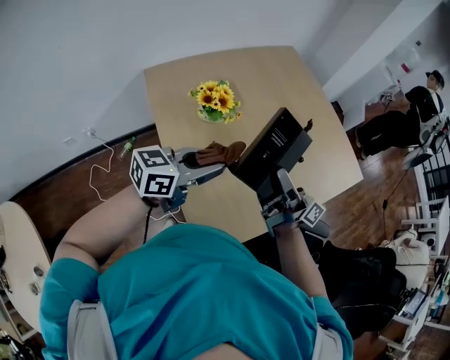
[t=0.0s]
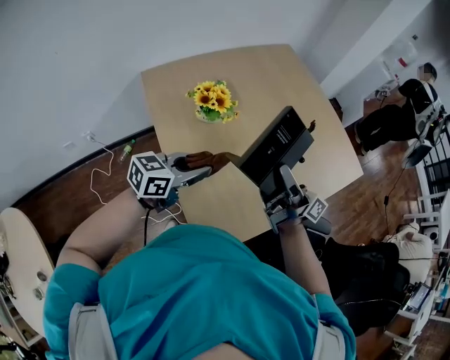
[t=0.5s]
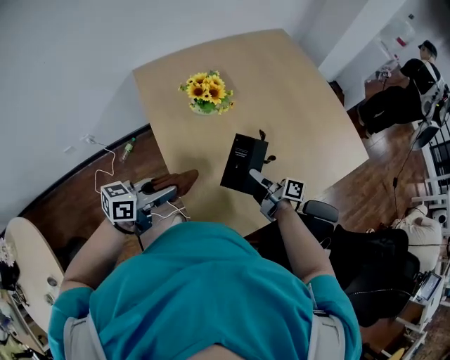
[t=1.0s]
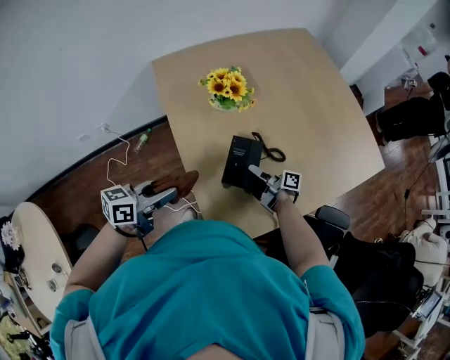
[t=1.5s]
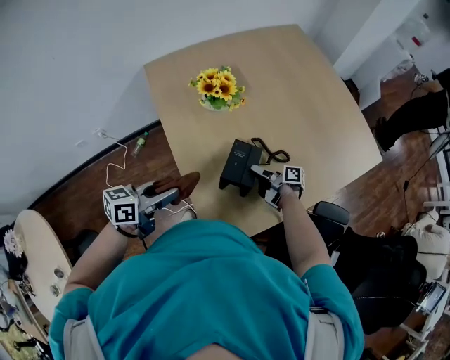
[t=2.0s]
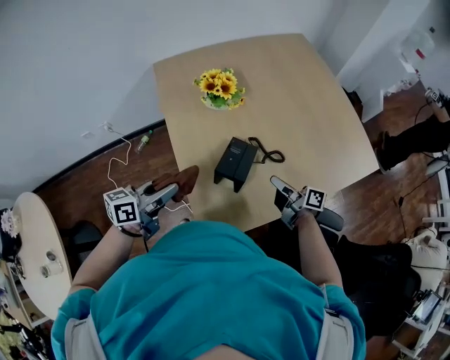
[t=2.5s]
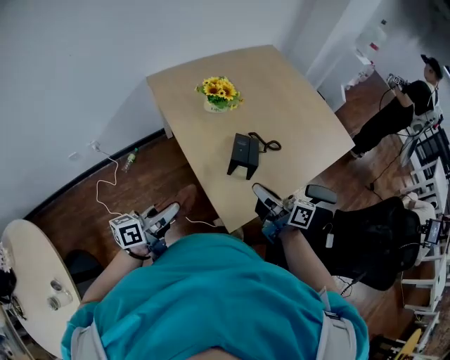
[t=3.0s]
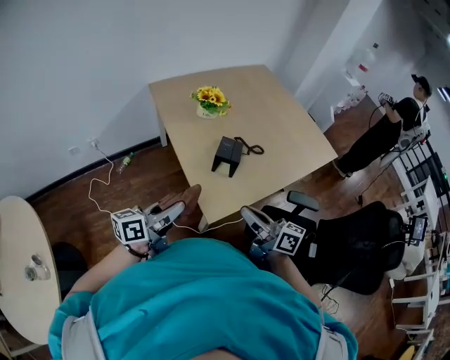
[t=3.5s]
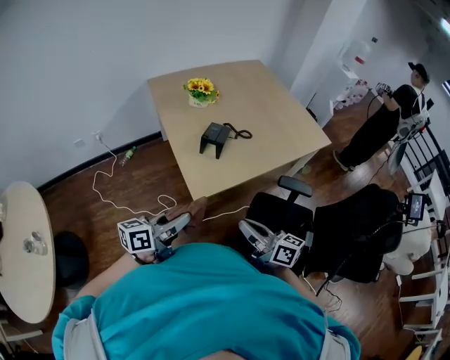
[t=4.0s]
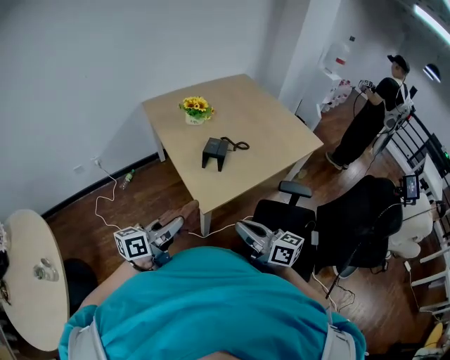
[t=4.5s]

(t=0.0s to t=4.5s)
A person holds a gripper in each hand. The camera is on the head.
t=0.0s - t=2.0s: The right gripper heads downward, covering some 35 cm, and tips its fingers downward by about 50 degrees. The left gripper shifts some 20 cm to the left, downward and backward, and swivels approximately 20 degrees.
t=2.0s - t=4.5s: The left gripper travels backward by roughly 35 cm, while the right gripper goes roughly 60 cm backward and upward, rolls counterclockwise, seen from behind, by approximately 50 degrees, and closes up.

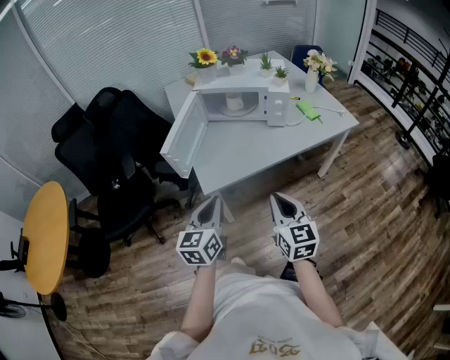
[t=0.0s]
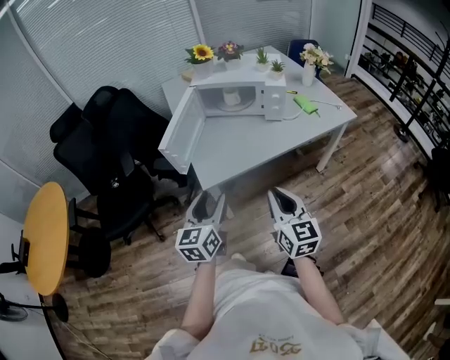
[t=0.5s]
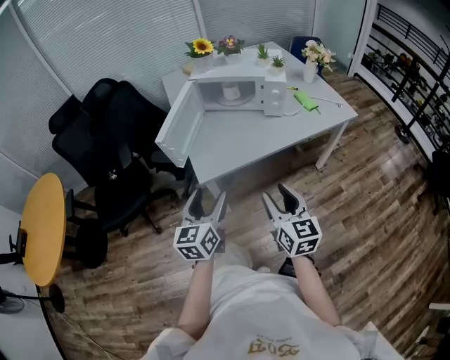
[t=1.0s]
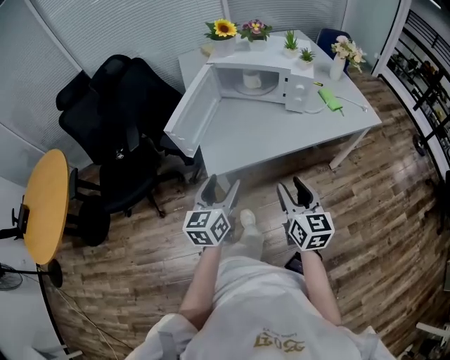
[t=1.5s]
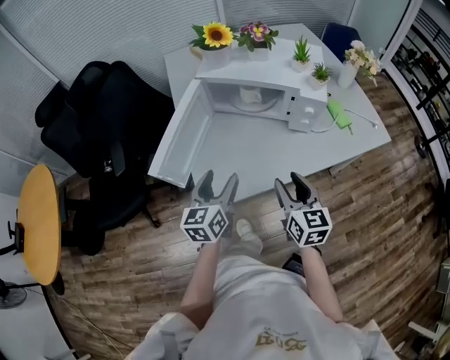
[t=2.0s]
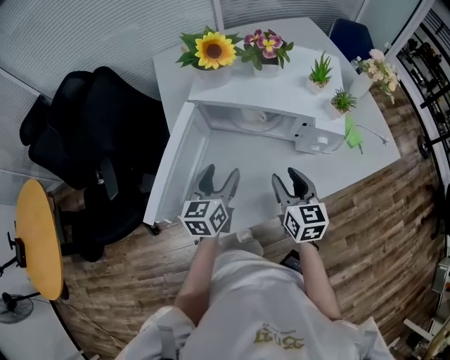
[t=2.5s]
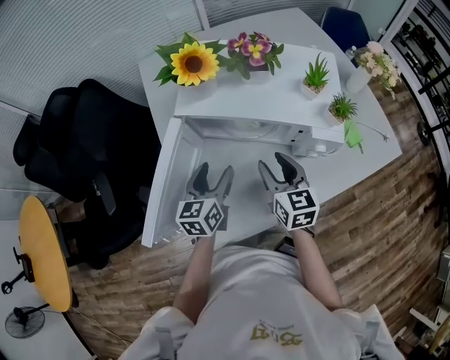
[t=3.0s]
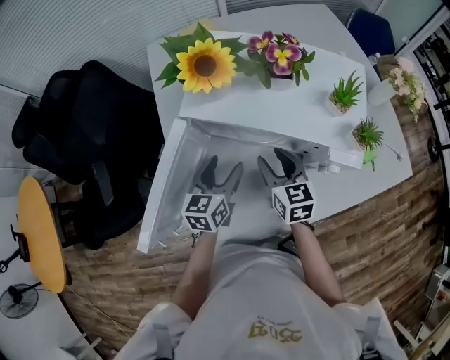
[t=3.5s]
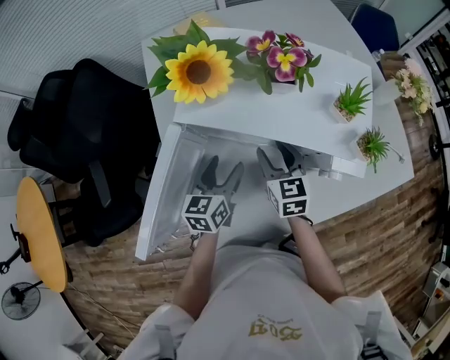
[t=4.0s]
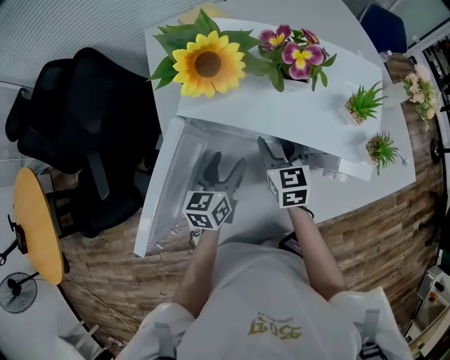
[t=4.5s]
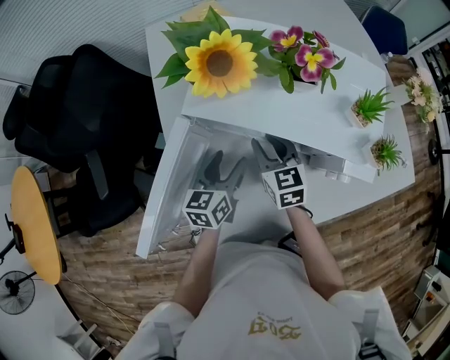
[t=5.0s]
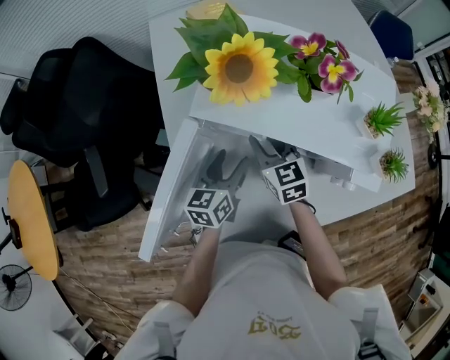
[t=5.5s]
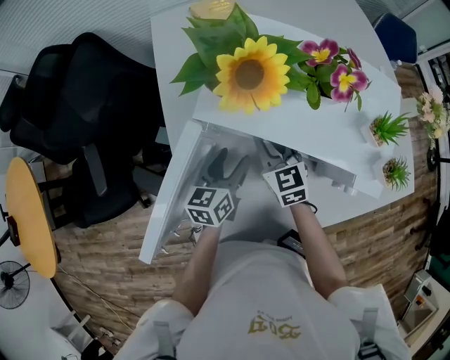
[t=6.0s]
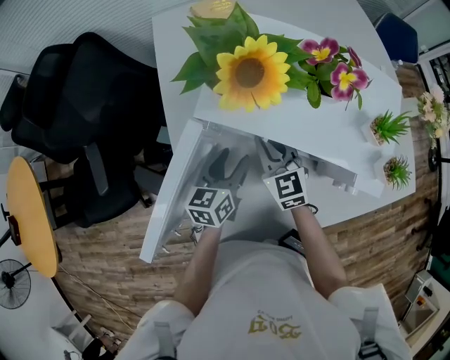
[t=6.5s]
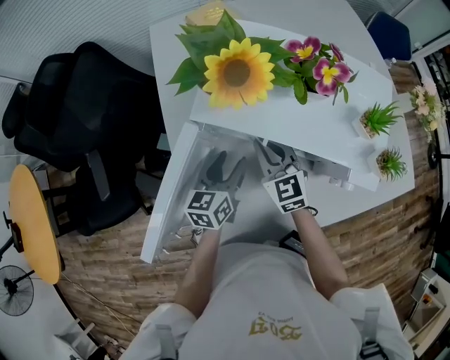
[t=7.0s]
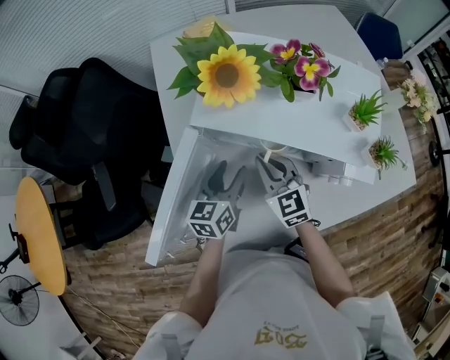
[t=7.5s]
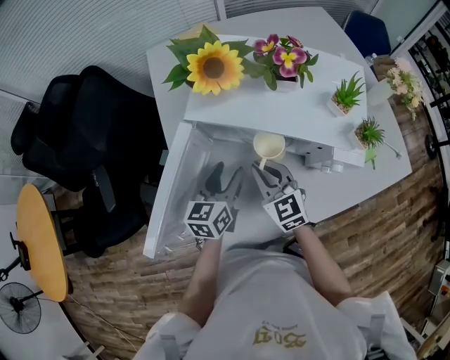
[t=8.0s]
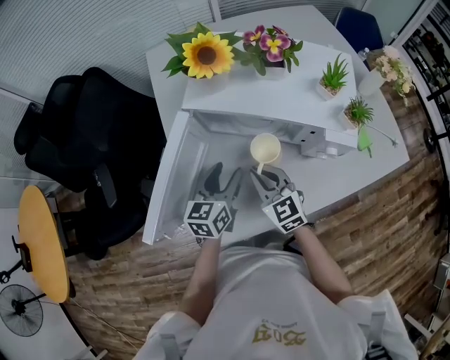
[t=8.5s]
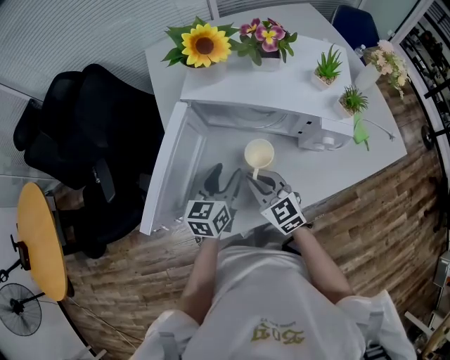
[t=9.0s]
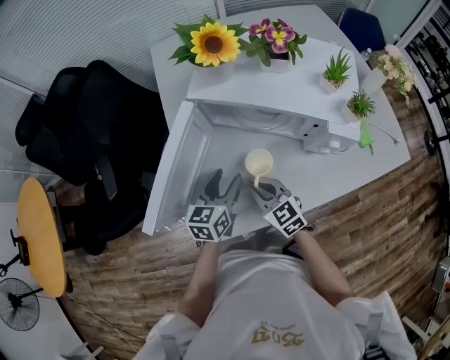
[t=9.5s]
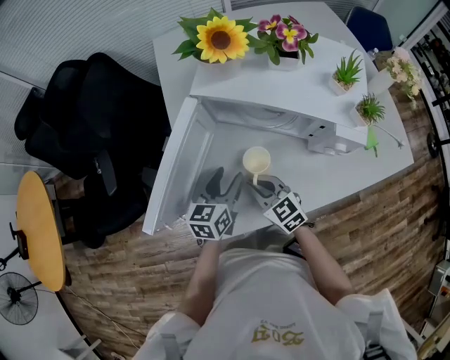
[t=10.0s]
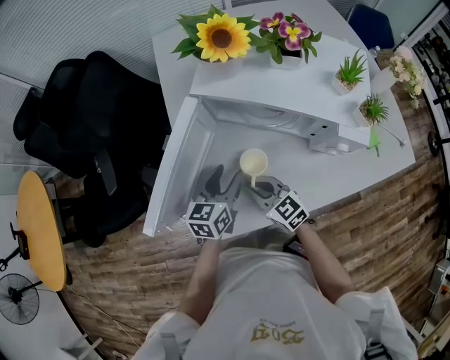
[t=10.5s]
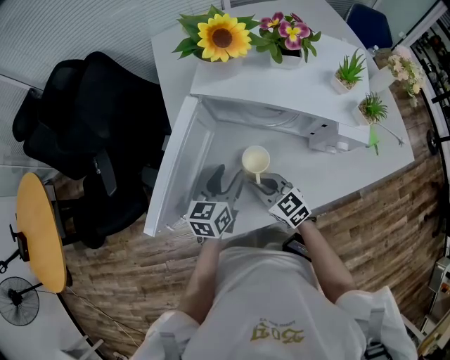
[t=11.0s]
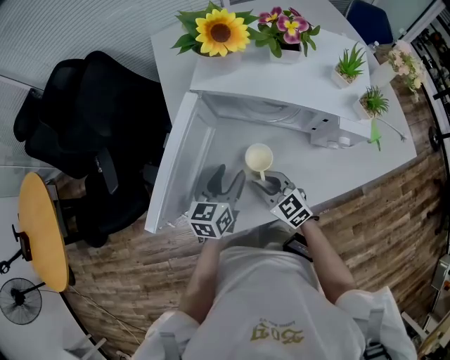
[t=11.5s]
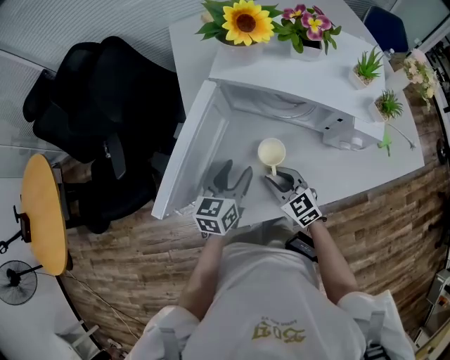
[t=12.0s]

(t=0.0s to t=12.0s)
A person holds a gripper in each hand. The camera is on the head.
t=0.0s - t=2.0s: Both grippers move forward, approximately 20 cm. The right gripper opens its fingers. The left gripper opens its fingers.
t=2.0s - t=4.0s: Both grippers move forward, approximately 30 cm.
t=4.0s - t=6.0s: The right gripper goes approximately 10 cm to the left, and closes up.
t=6.0s - t=8.0s: The left gripper changes place by some 5 cm. The right gripper shifts roughly 10 cm backward.
t=8.0s - t=10.0s: The left gripper shifts about 5 cm backward. The right gripper travels backward and downward by some 10 cm.
t=10.0s - t=12.0s: The grippers stay close to where they were, moving slightly.

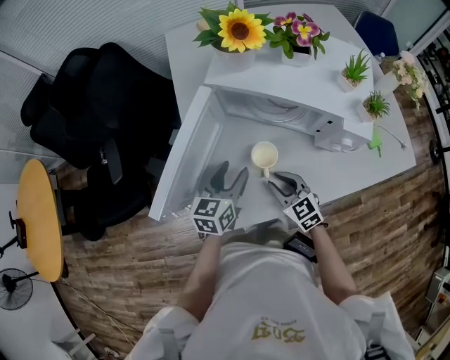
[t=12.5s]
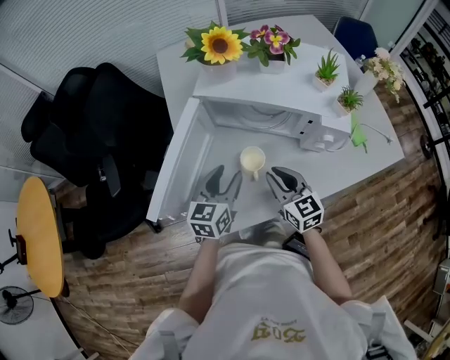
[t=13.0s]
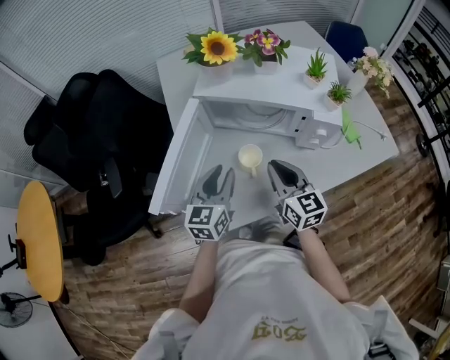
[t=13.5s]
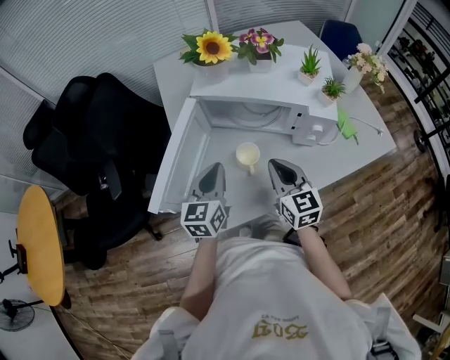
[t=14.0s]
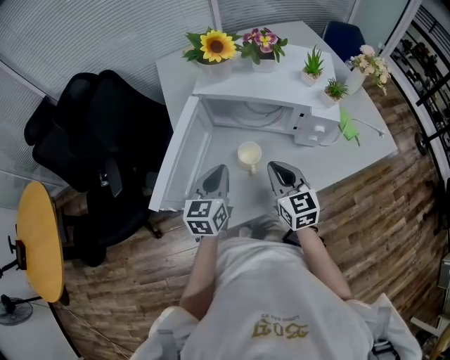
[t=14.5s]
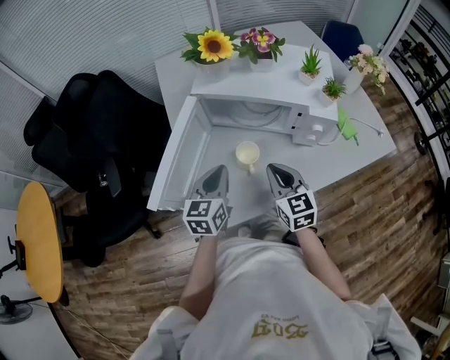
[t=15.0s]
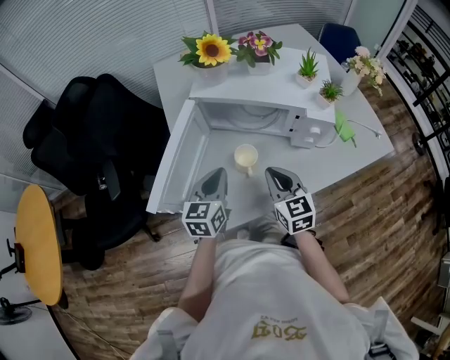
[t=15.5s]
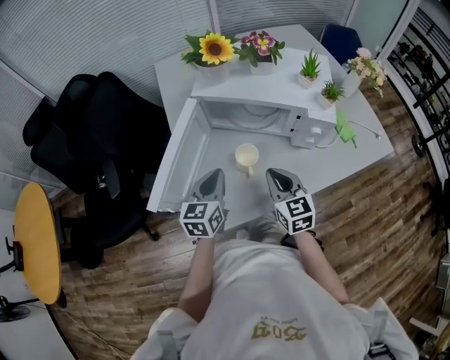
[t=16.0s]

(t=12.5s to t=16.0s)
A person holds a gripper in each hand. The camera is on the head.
t=12.5s - t=14.5s: The left gripper shifts approximately 5 cm upward, and closes its fingers, while the right gripper moves upward, roughly 15 cm, swivels some 30 degrees, and closes.
t=14.5s - t=16.0s: The grippers move only a little.

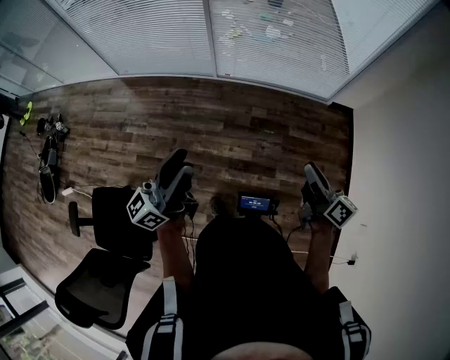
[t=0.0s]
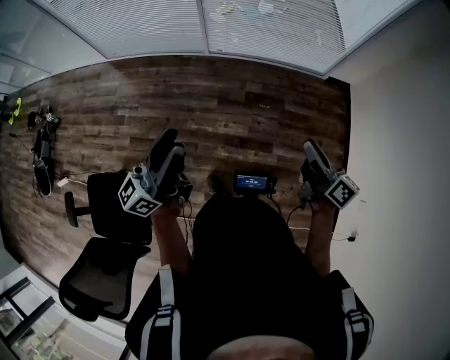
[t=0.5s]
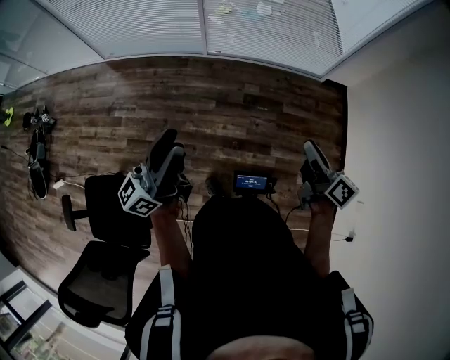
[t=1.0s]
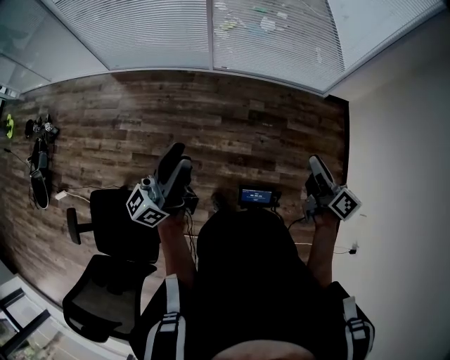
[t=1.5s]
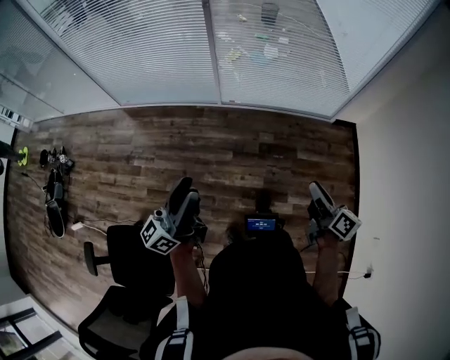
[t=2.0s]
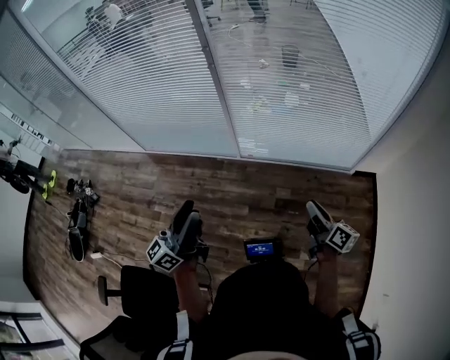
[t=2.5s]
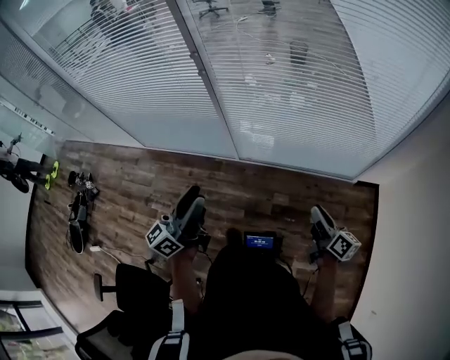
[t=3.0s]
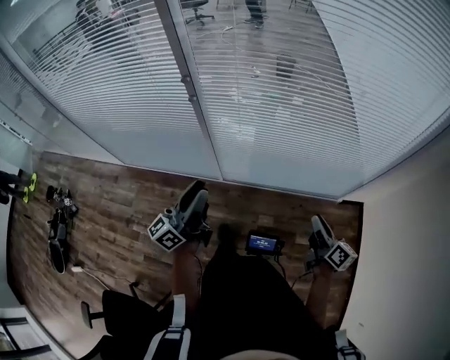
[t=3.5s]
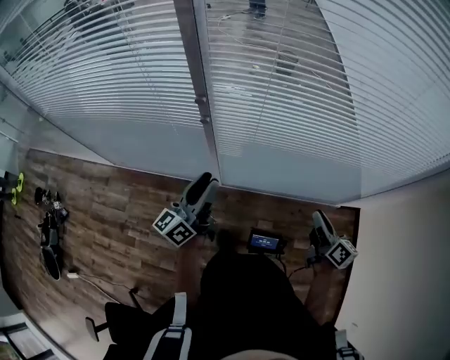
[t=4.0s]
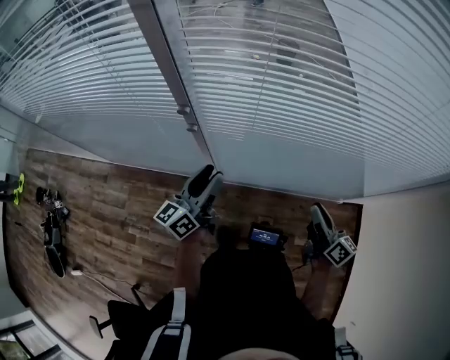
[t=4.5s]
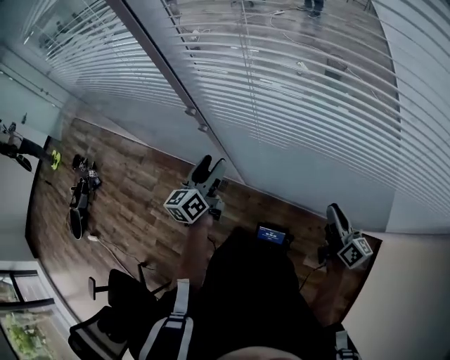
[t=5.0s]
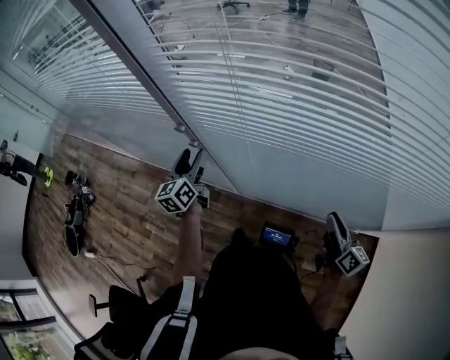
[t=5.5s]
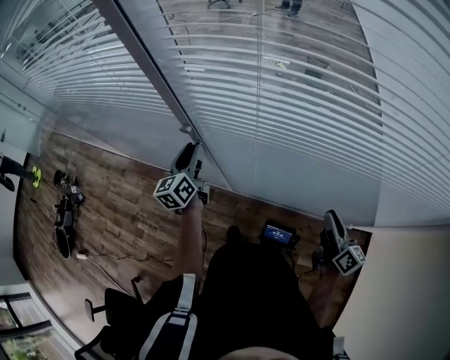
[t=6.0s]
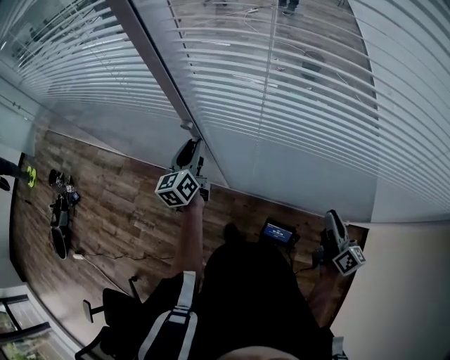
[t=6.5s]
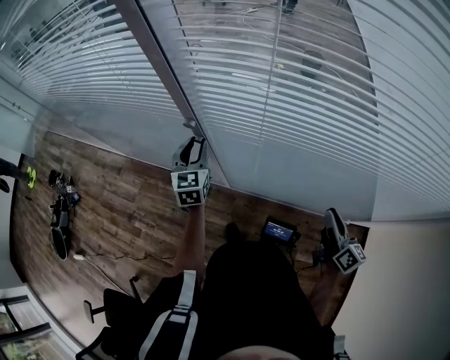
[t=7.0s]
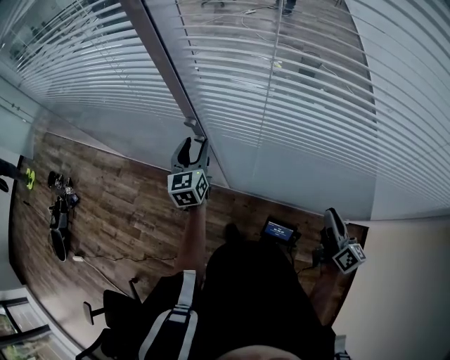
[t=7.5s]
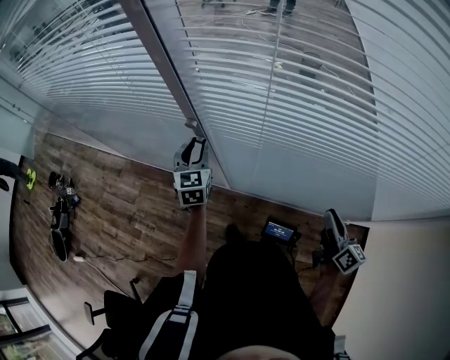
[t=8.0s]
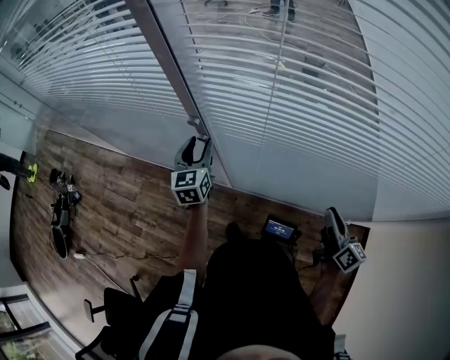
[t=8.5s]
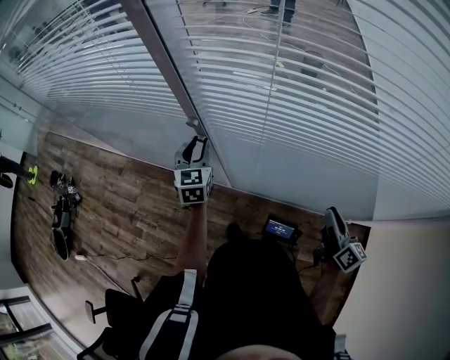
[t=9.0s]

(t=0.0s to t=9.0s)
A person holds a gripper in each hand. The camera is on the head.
t=0.0s - t=2.0s: The right gripper shifts roughly 10 cm forward and to the left. The left gripper goes some 10 cm to the left and forward.
t=2.0s - t=4.5s: Both grippers are carried forward, approximately 60 cm.
t=4.5s - t=7.0s: The left gripper moves forward and to the left, approximately 15 cm, swivels approximately 60 degrees, and opens, then closes once more.
